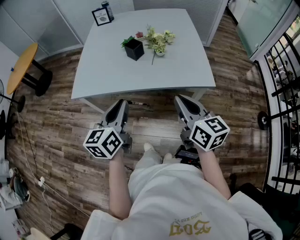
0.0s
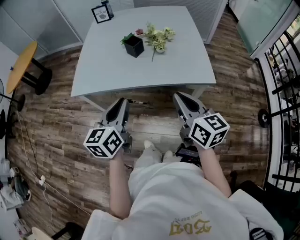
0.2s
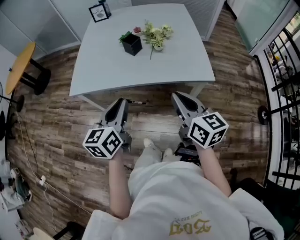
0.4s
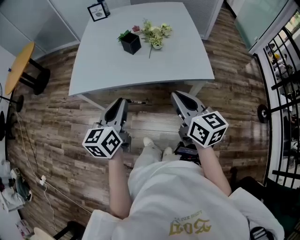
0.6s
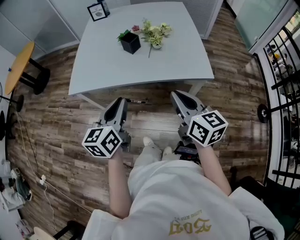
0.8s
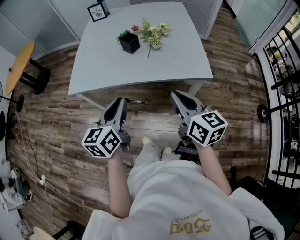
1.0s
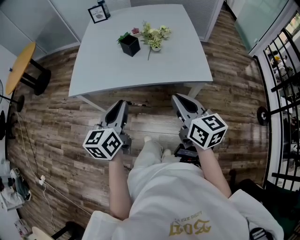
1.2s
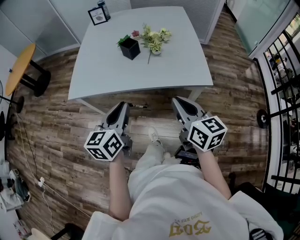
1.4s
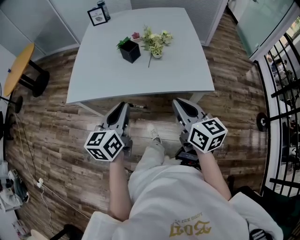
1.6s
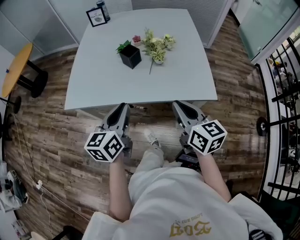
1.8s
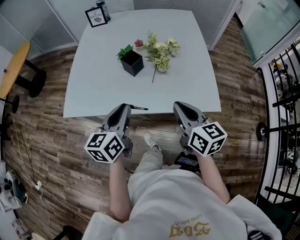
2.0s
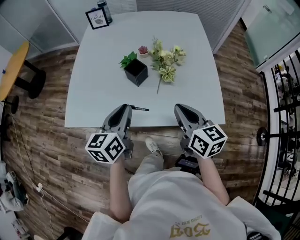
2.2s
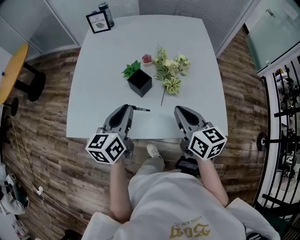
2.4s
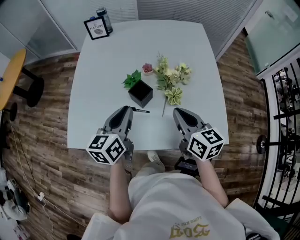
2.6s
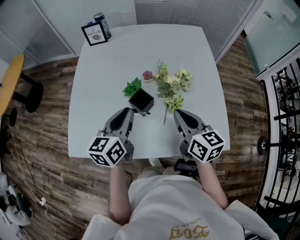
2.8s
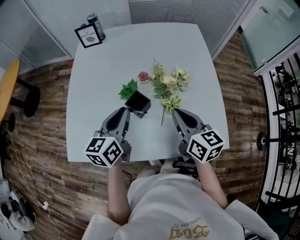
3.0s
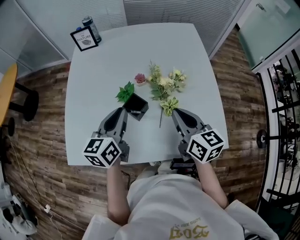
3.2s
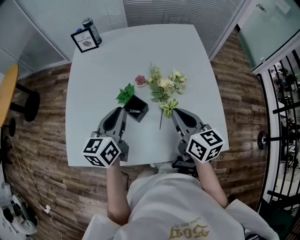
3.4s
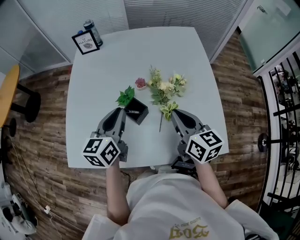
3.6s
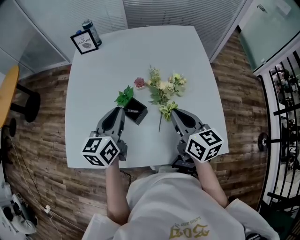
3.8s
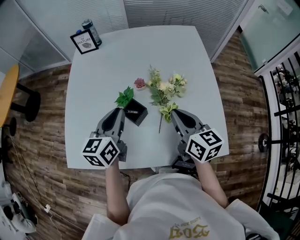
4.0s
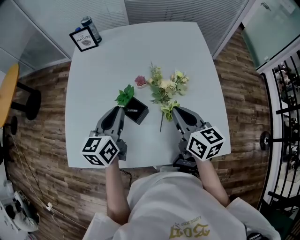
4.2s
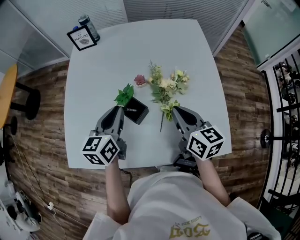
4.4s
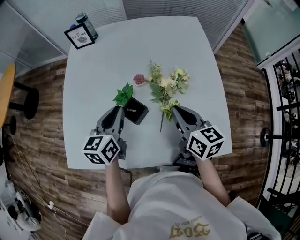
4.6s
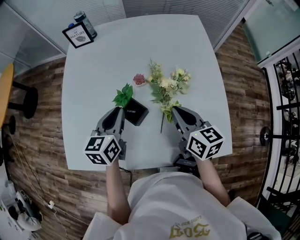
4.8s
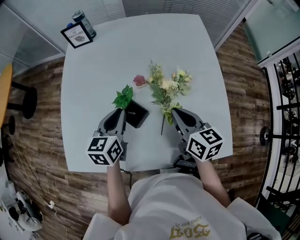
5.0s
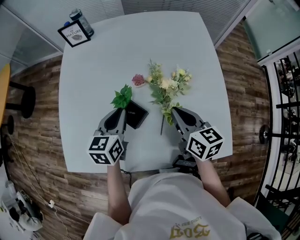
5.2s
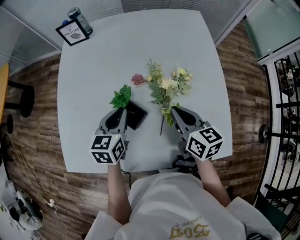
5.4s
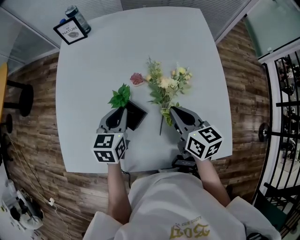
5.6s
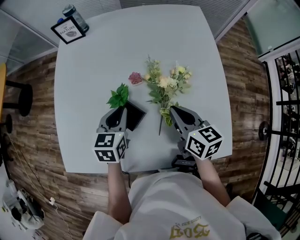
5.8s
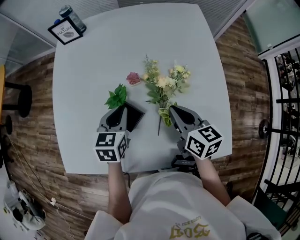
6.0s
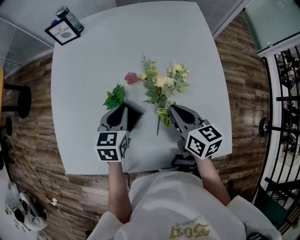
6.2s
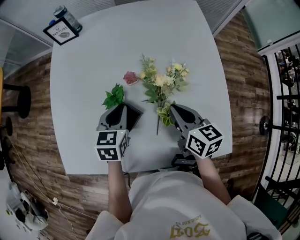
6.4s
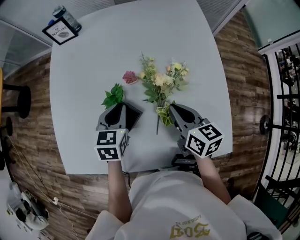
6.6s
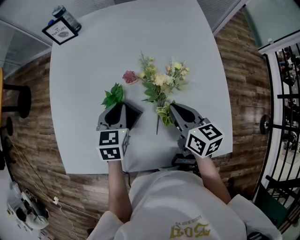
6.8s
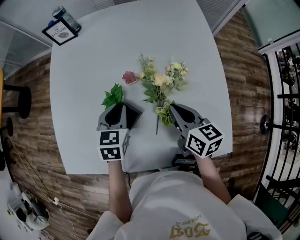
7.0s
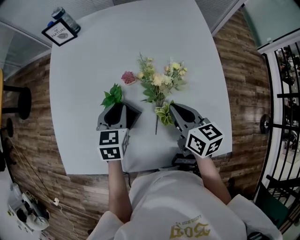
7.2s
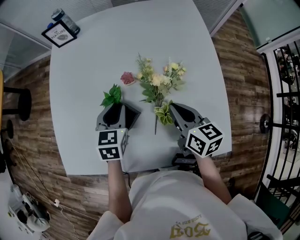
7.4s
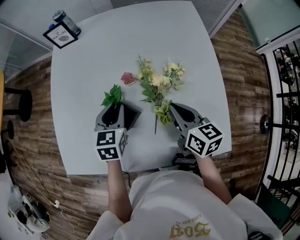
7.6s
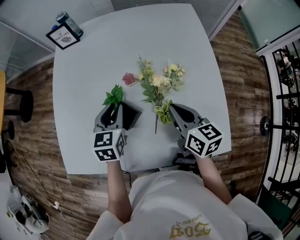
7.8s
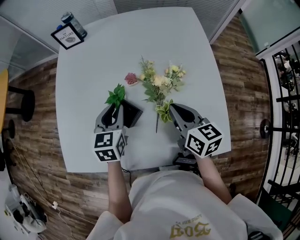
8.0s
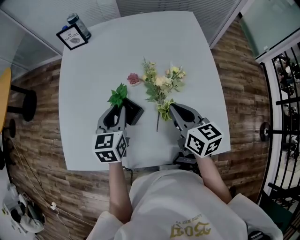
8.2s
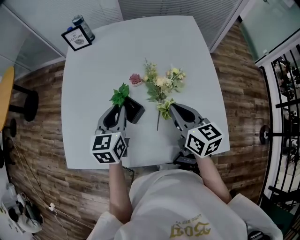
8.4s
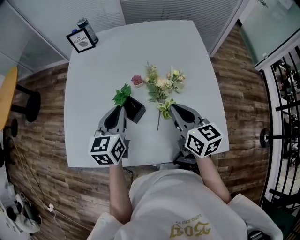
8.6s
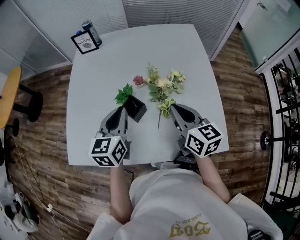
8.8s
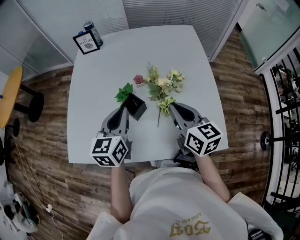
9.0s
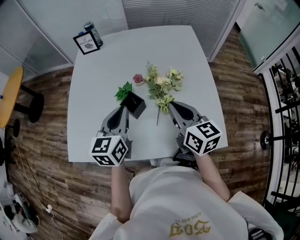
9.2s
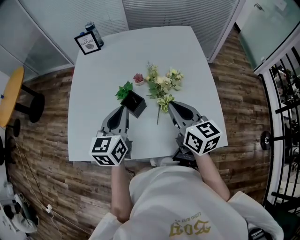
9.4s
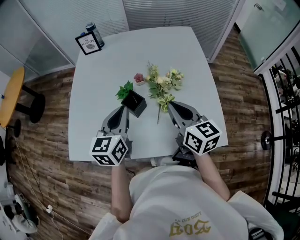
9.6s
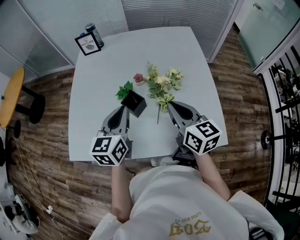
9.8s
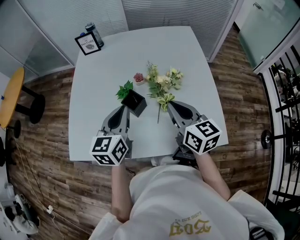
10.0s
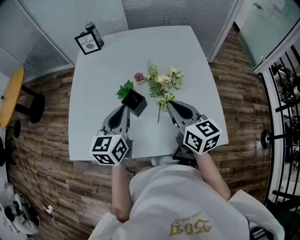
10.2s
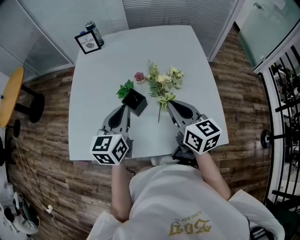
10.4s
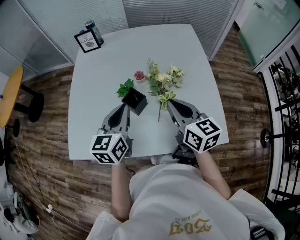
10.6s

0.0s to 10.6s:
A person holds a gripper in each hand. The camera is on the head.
0.0s to 1.6s: The left gripper changes place by some 5 cm. Meanwhile the right gripper changes place by some 5 cm.
1.6s to 3.0s: The two grippers go about 35 cm forward.
3.0s to 4.6s: Both grippers travel together forward, some 5 cm.
4.6s to 6.0s: The left gripper shifts about 10 cm downward. The right gripper shifts roughly 5 cm downward.
6.0s to 7.6s: There are only small adjustments of the grippers.
7.6s to 9.0s: Both grippers travel together upward and backward, about 15 cm. The left gripper changes its angle by approximately 20 degrees.
9.0s to 10.6s: The grippers move only a little.

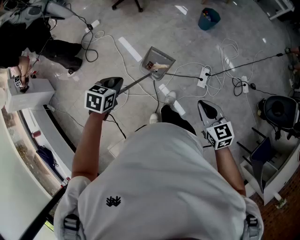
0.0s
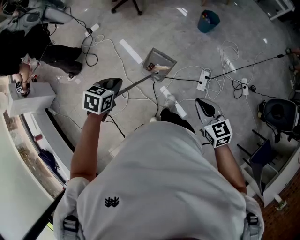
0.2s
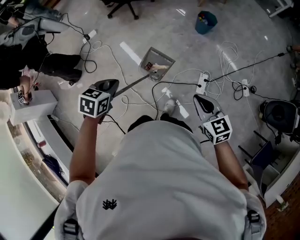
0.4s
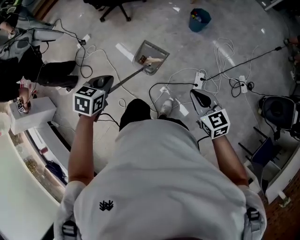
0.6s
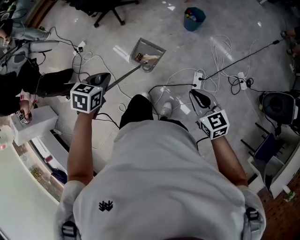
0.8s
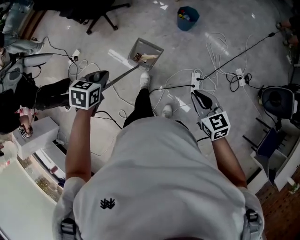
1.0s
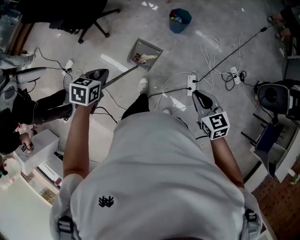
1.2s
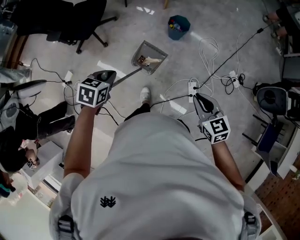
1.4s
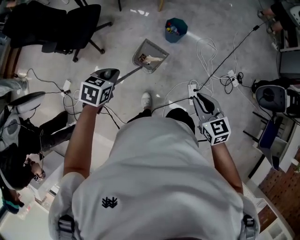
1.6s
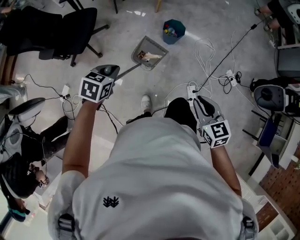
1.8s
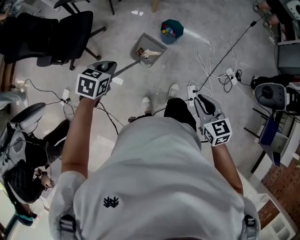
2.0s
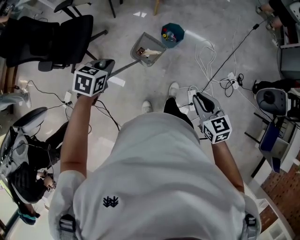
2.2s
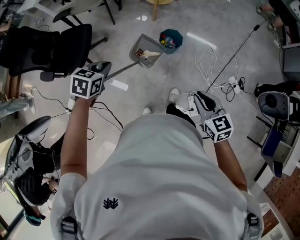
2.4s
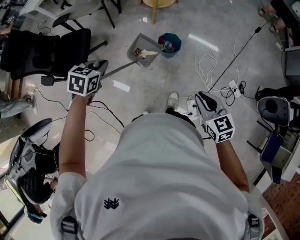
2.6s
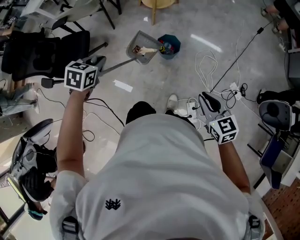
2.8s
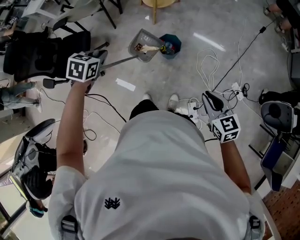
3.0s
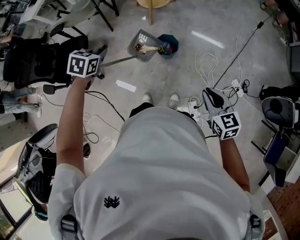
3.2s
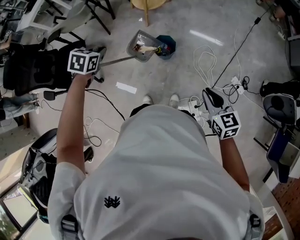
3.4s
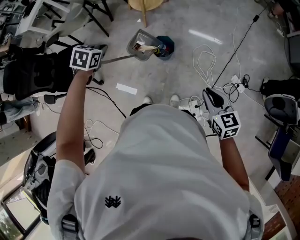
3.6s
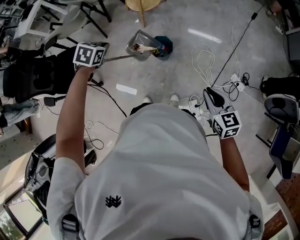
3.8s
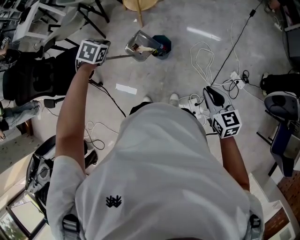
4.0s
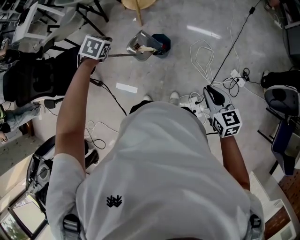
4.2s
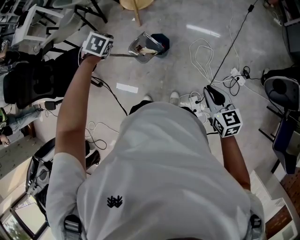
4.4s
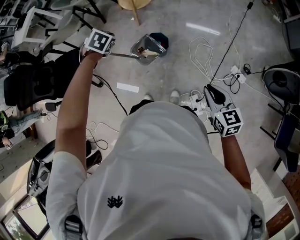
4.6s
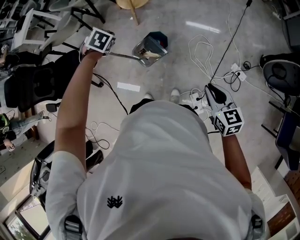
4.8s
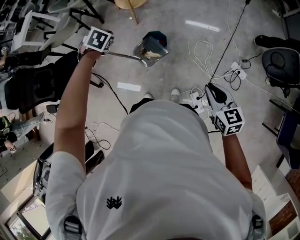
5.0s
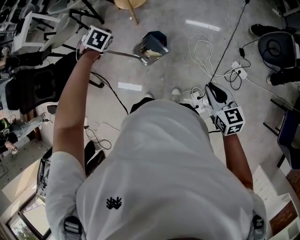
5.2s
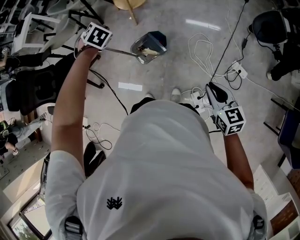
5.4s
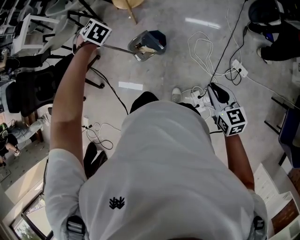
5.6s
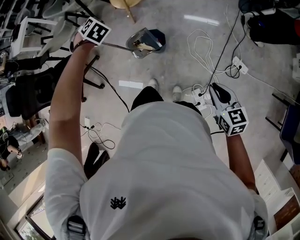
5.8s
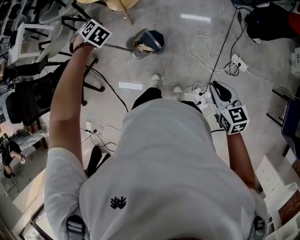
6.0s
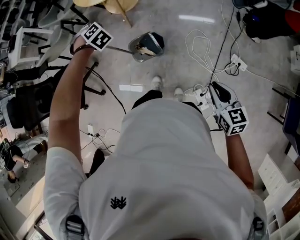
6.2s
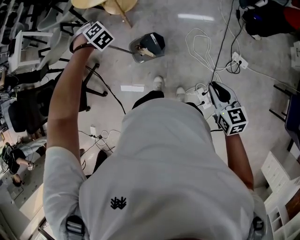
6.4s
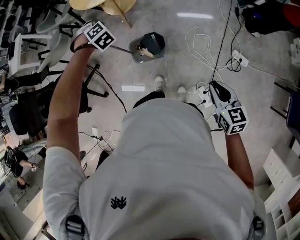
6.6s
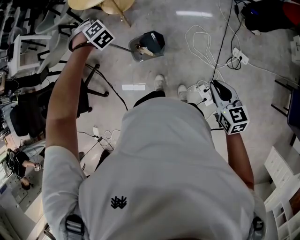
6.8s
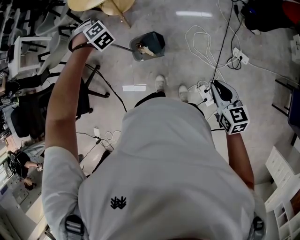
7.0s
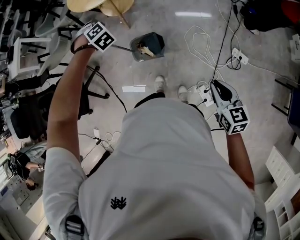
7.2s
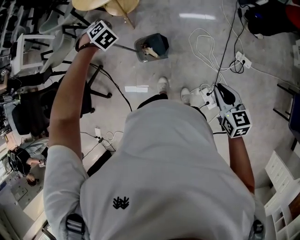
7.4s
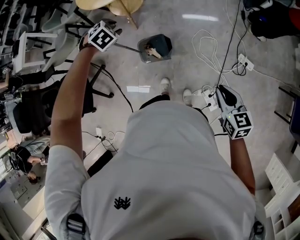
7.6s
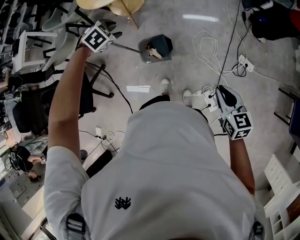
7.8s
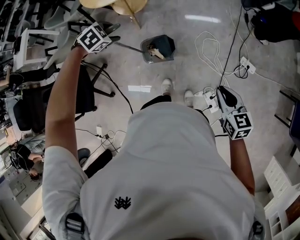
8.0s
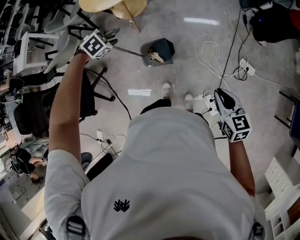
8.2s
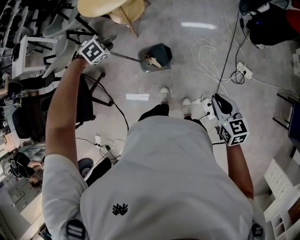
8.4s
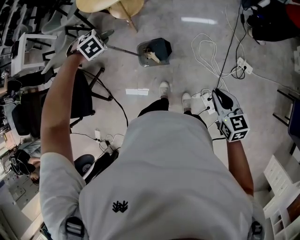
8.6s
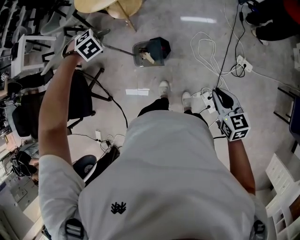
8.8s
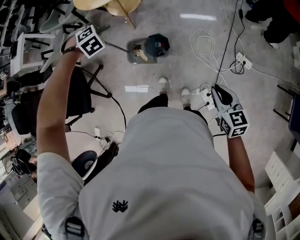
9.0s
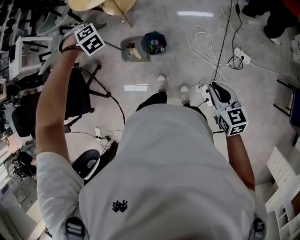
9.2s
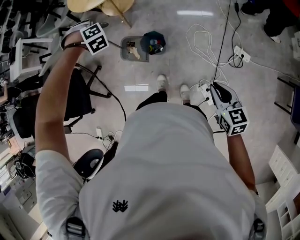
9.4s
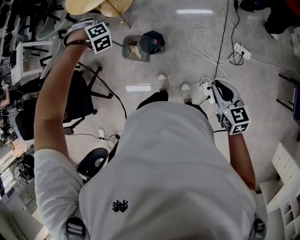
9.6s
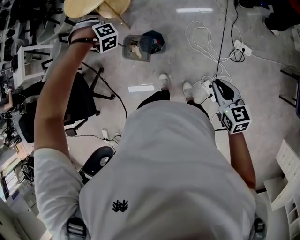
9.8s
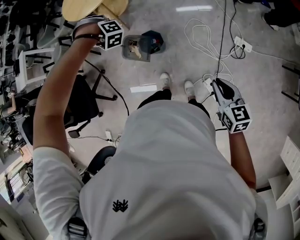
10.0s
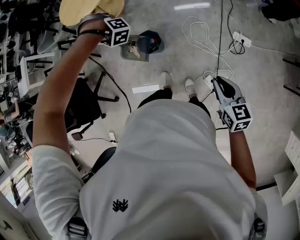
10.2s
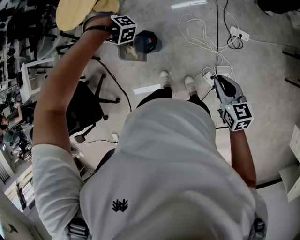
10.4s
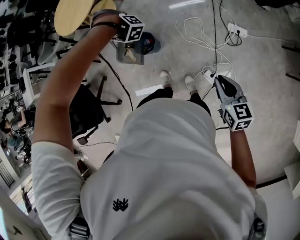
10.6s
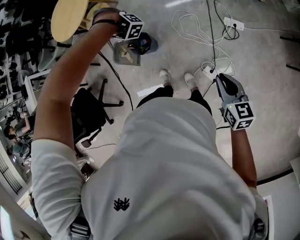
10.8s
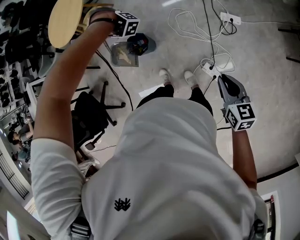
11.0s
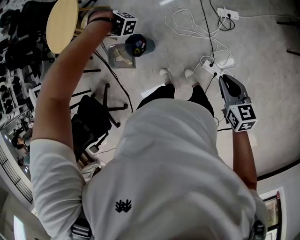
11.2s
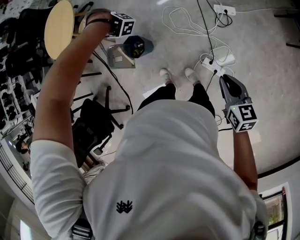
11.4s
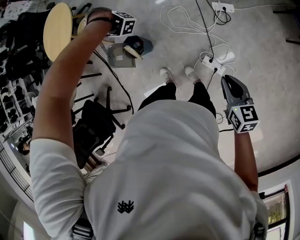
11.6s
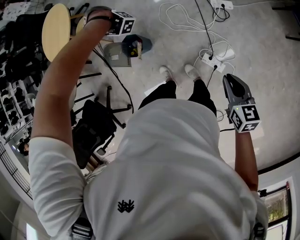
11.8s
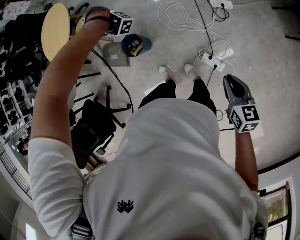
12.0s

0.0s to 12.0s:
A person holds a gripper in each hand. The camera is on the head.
0.0s to 1.6s: The right gripper changes place by about 40 cm, and rotates approximately 20 degrees.
1.6s to 3.0s: The right gripper changes place by approximately 30 cm.
3.0s to 4.4s: The right gripper ends up some 5 cm from where it was.
9.0s to 10.4s: The right gripper shifts by approximately 10 cm.
10.4s to 12.0s: The right gripper moves some 15 cm, and rotates approximately 20 degrees.

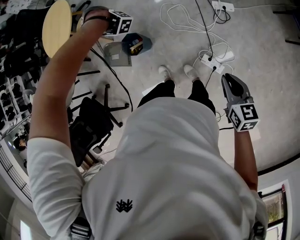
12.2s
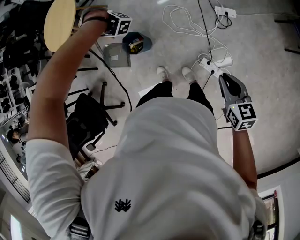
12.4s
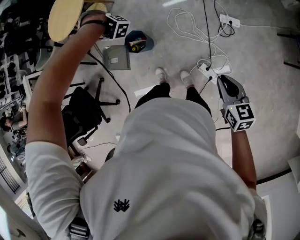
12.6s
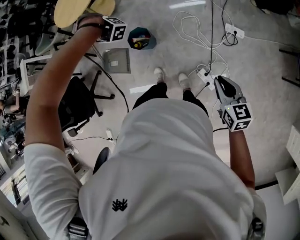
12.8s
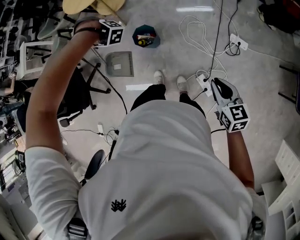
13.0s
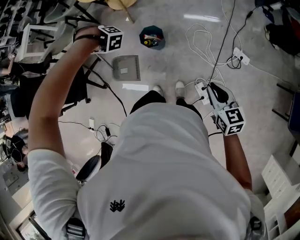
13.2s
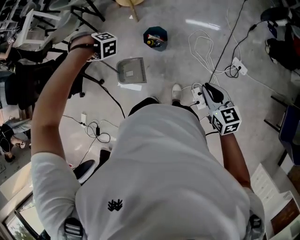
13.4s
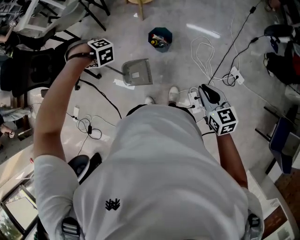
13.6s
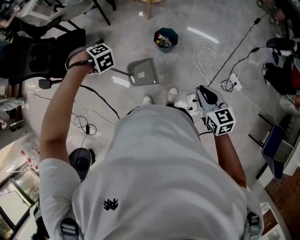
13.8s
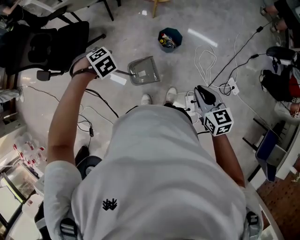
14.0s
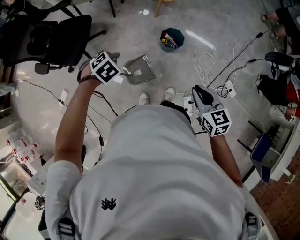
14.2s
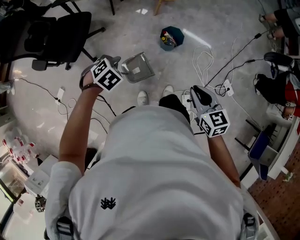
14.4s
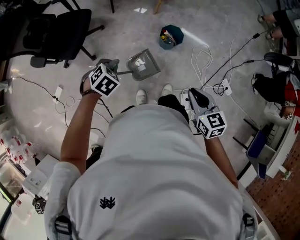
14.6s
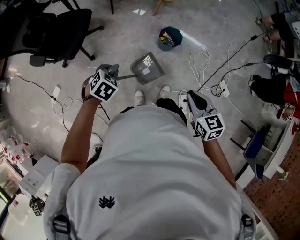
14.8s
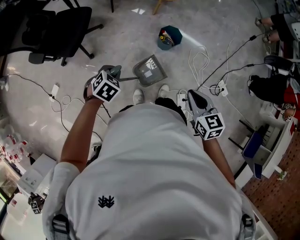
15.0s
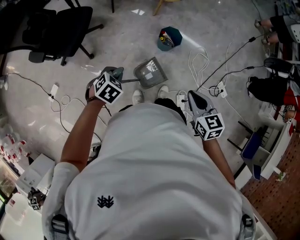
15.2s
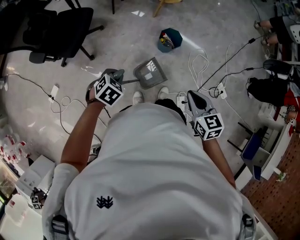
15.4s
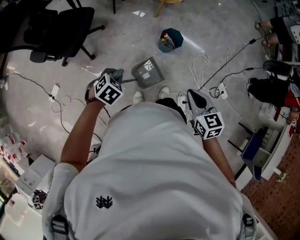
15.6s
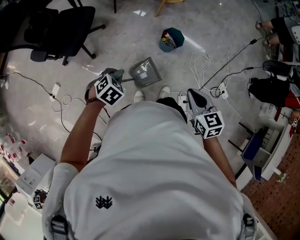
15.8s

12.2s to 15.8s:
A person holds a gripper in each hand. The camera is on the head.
12.2s to 14.0s: The right gripper shifts by some 35 cm, and turns by about 60 degrees.
14.0s to 15.8s: The right gripper moves about 10 cm.
